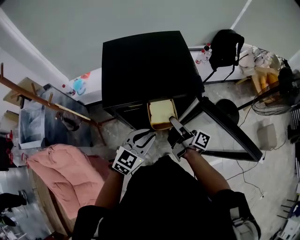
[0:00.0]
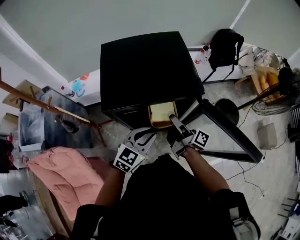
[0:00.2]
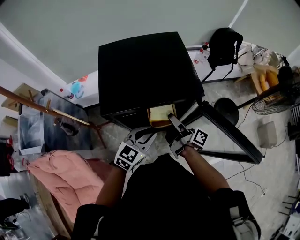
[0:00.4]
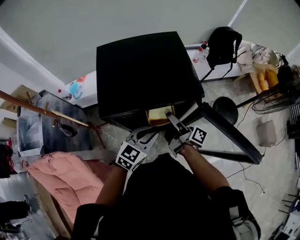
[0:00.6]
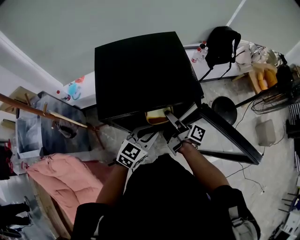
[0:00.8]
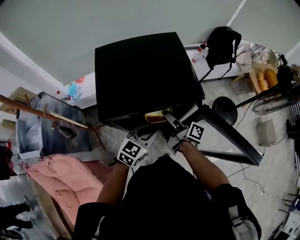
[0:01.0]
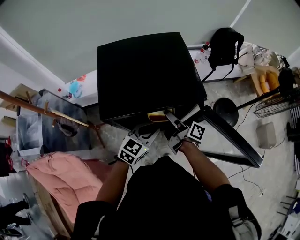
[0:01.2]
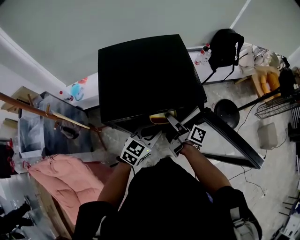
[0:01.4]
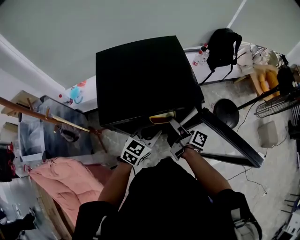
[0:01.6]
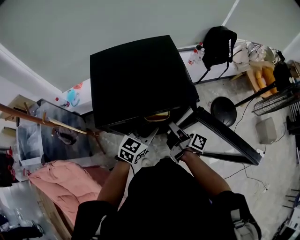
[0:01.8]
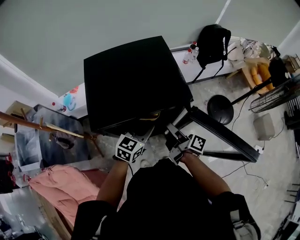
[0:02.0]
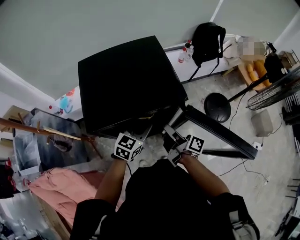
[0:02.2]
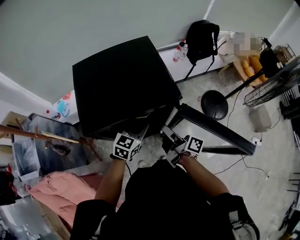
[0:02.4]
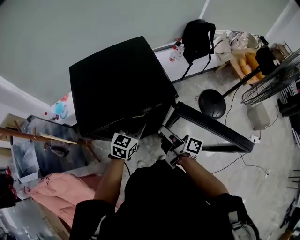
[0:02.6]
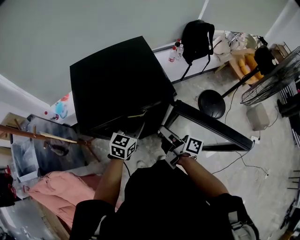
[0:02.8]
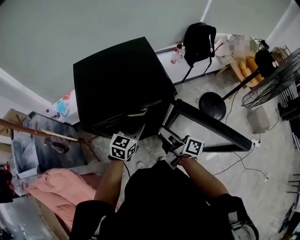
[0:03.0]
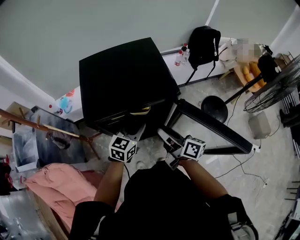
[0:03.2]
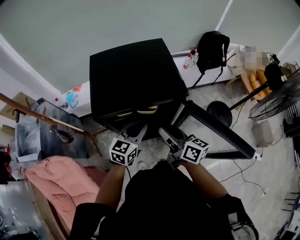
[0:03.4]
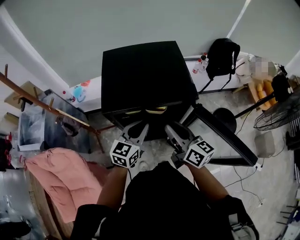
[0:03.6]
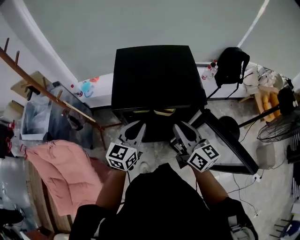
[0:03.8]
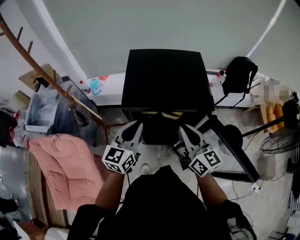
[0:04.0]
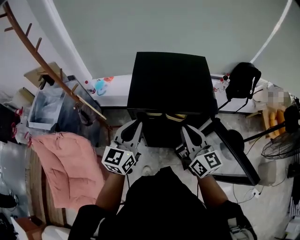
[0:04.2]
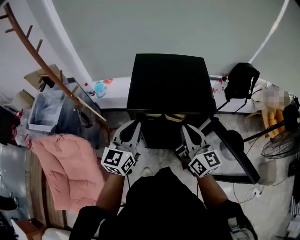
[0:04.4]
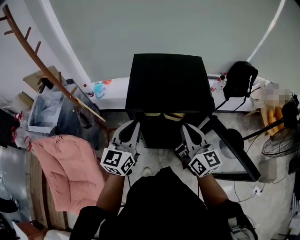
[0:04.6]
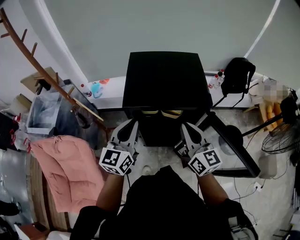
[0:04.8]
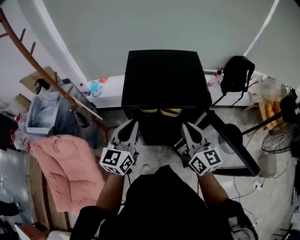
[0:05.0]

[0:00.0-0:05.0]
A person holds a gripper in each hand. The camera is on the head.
0:00.0 to 0:01.6: The left gripper is displaced forward by approximately 10 cm, while the right gripper moves roughly 5 cm.
0:01.6 to 0:03.4: The right gripper moves upward and backward, about 10 cm, turns by about 40 degrees, and closes up.
0:03.4 to 0:05.0: The left gripper travels to the left and upward by some 15 cm, and swivels roughly 30 degrees. Meanwhile the right gripper goes roughly 5 cm upward, turns by some 30 degrees, and closes its fingers.

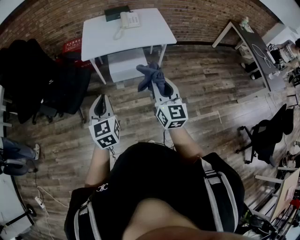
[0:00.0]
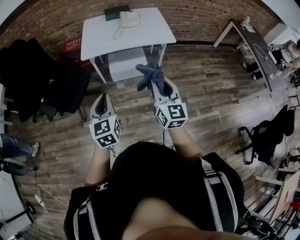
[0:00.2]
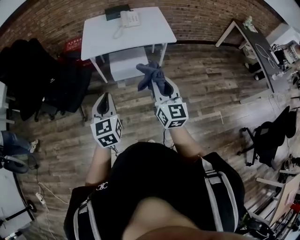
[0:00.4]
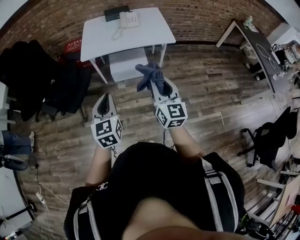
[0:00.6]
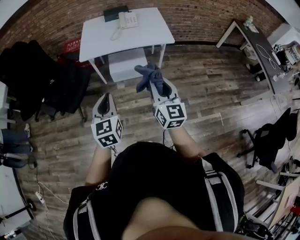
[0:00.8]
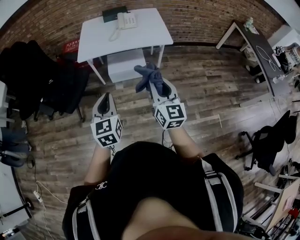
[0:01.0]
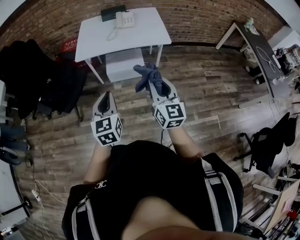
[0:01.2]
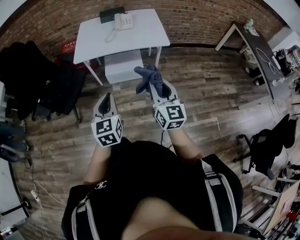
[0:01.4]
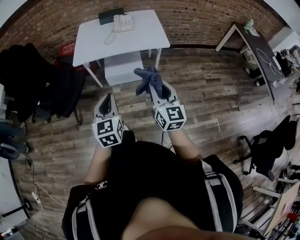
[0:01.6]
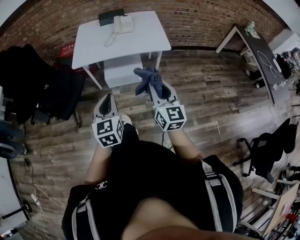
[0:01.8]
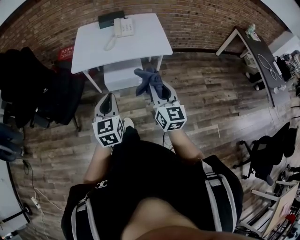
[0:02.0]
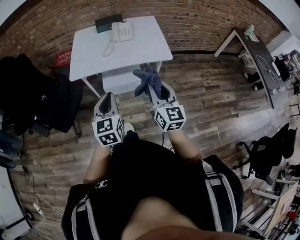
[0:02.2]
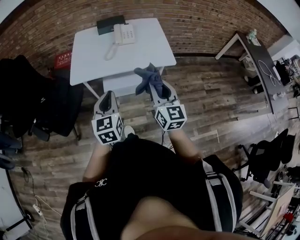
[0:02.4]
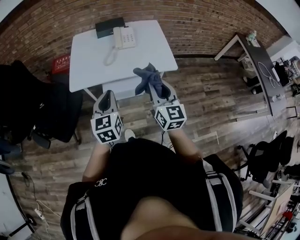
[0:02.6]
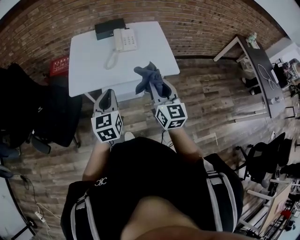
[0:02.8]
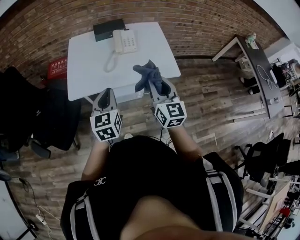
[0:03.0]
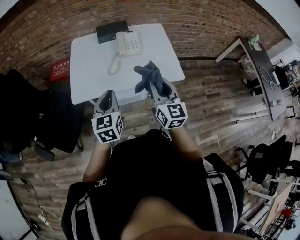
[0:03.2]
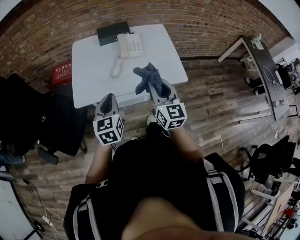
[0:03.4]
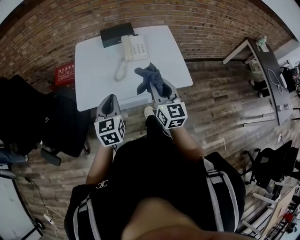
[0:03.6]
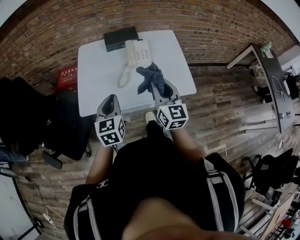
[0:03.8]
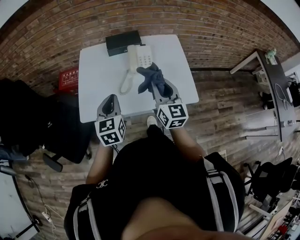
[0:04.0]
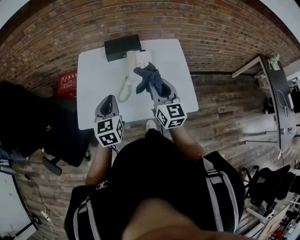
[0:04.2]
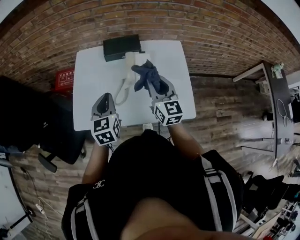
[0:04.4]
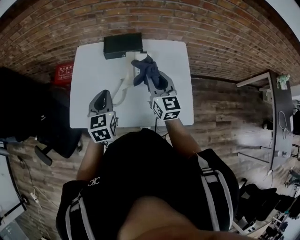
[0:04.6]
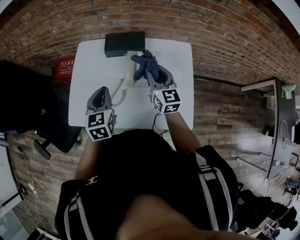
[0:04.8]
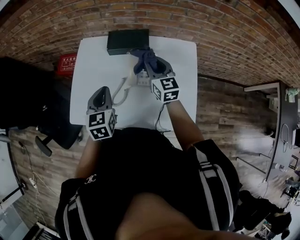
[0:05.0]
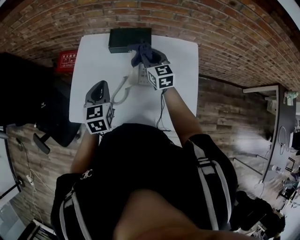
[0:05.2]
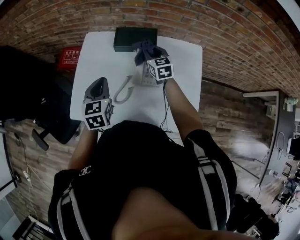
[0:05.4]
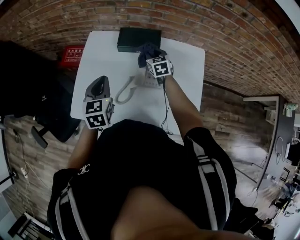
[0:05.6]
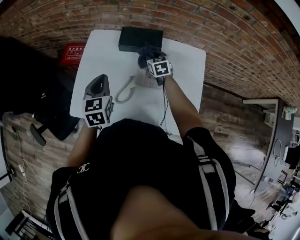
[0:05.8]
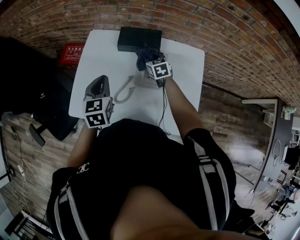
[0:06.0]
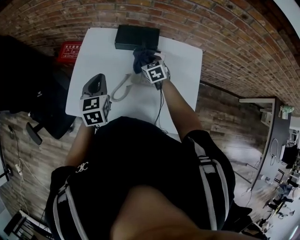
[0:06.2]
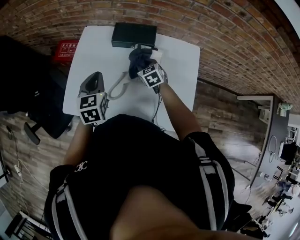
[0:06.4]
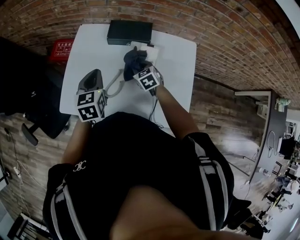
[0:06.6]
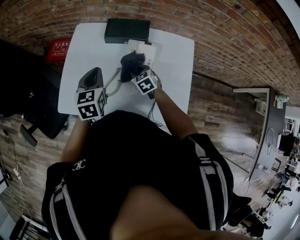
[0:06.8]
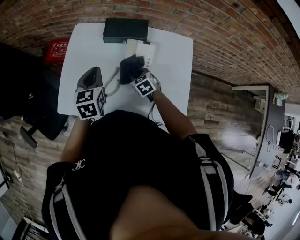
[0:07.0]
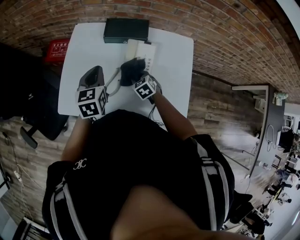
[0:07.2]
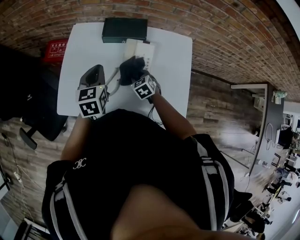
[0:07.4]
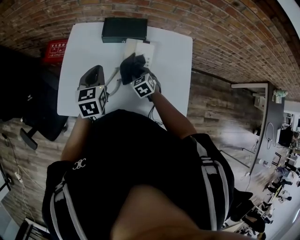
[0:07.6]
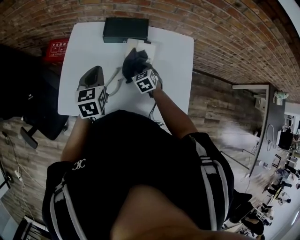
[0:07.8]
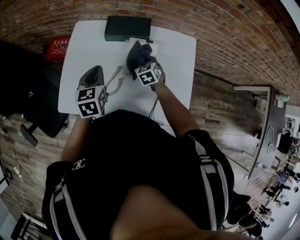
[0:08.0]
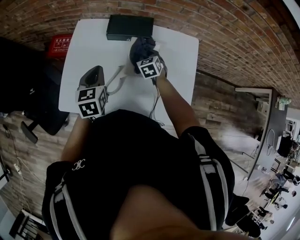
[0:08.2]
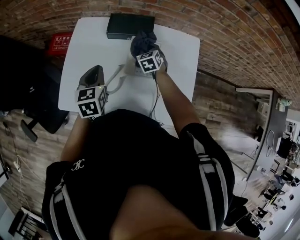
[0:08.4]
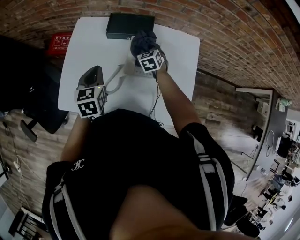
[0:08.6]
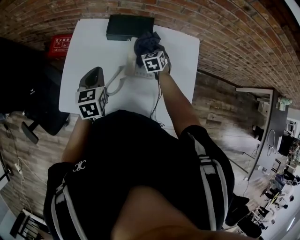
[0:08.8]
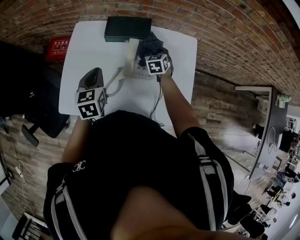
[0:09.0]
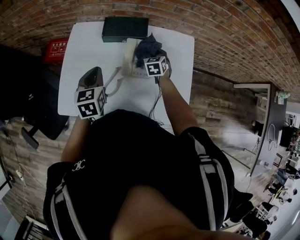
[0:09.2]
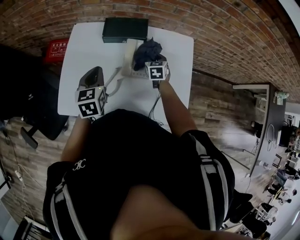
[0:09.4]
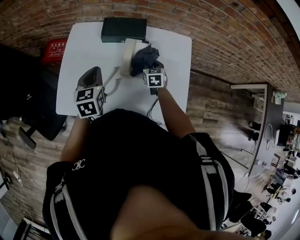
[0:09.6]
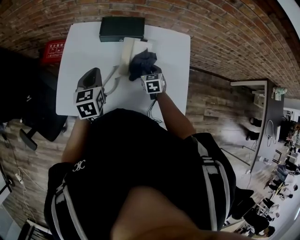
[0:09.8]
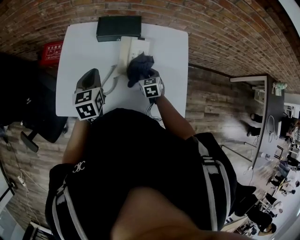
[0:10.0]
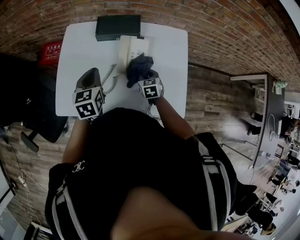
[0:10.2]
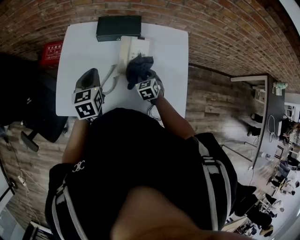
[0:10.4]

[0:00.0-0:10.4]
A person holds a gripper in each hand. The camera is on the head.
0:00.0 to 0:01.4: Both grippers travel together to the right, some 15 cm.
0:01.4 to 0:03.0: Both grippers travel together forward, approximately 35 cm.
0:03.0 to 0:04.4: The two grippers go roughly 30 cm forward.
0:04.4 to 0:06.0: The right gripper is displaced forward and downward by roughly 30 cm, and points its fingers approximately 30 degrees further downward. Meanwhile the left gripper heads forward, covering some 10 cm.
0:06.0 to 0:07.4: The right gripper moves backward and downward, some 15 cm.
0:07.4 to 0:09.0: The right gripper is displaced forward and to the right by approximately 15 cm, and changes its angle by some 20 degrees.
0:09.0 to 0:10.4: The right gripper goes some 15 cm backward.

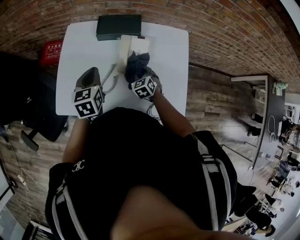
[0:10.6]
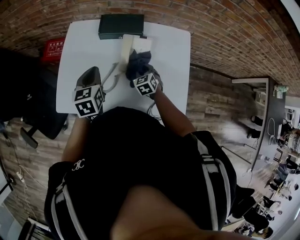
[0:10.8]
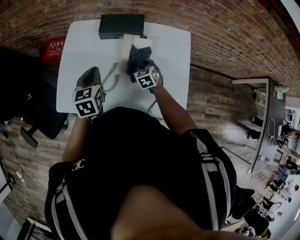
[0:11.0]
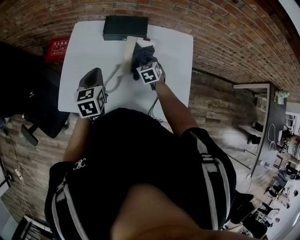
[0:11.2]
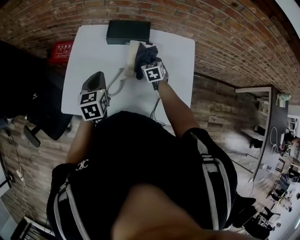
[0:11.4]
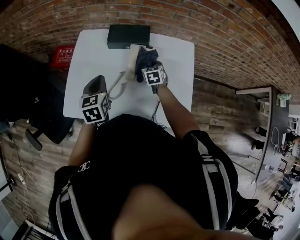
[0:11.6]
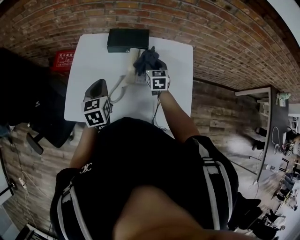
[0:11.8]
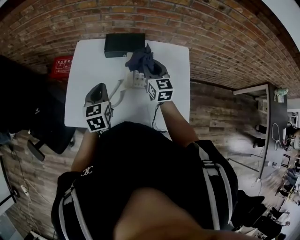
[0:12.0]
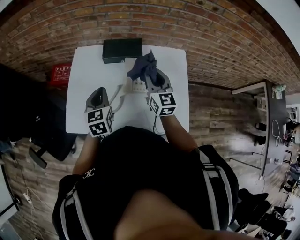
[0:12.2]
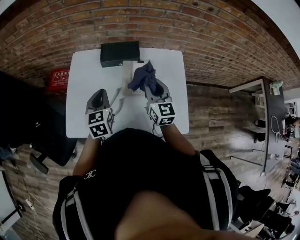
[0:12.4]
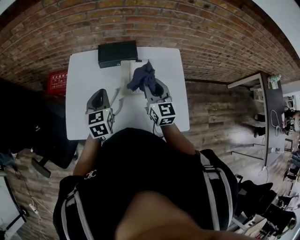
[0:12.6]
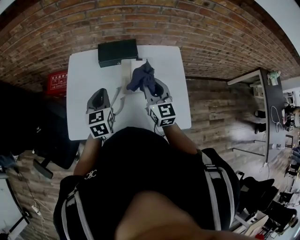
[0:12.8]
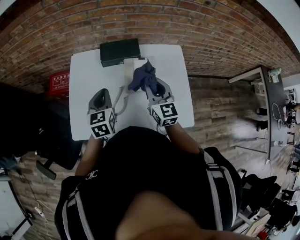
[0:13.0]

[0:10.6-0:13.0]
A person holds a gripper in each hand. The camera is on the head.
0:10.6 to 0:11.8: The right gripper heads upward and forward, covering roughly 15 cm, and turns by some 30 degrees.
0:11.8 to 0:13.0: The right gripper is displaced upward and backward by approximately 20 cm.

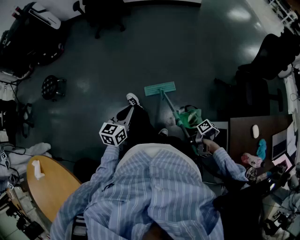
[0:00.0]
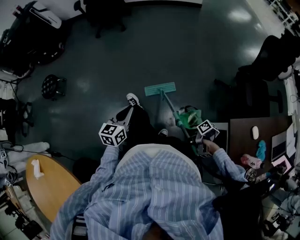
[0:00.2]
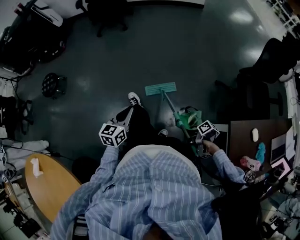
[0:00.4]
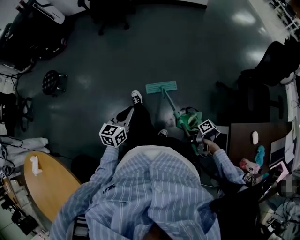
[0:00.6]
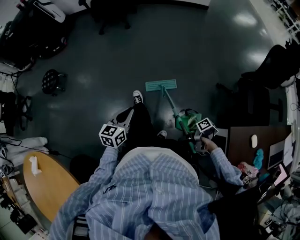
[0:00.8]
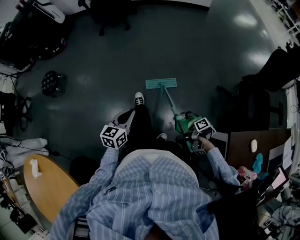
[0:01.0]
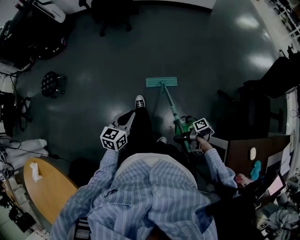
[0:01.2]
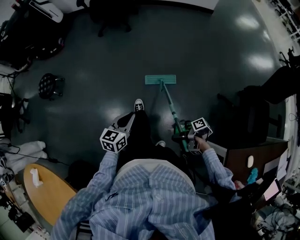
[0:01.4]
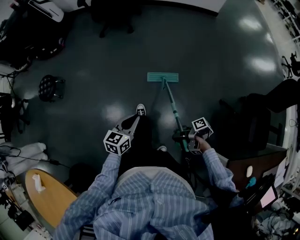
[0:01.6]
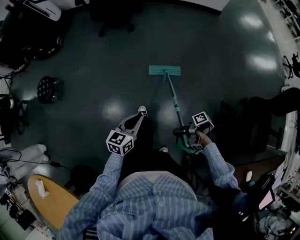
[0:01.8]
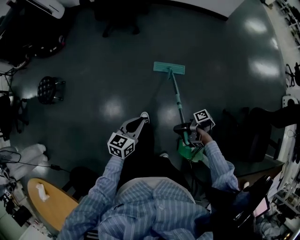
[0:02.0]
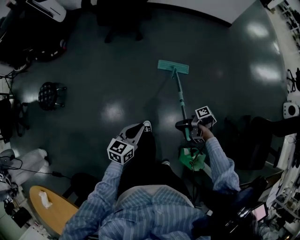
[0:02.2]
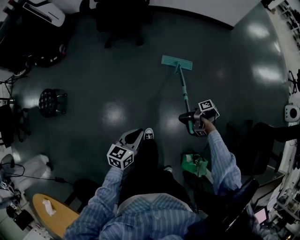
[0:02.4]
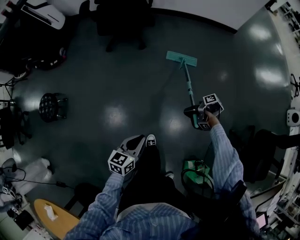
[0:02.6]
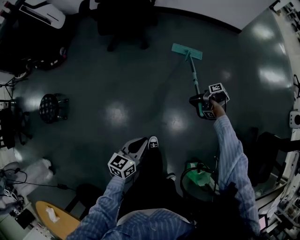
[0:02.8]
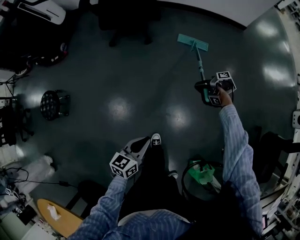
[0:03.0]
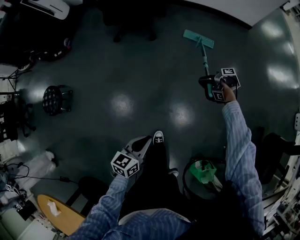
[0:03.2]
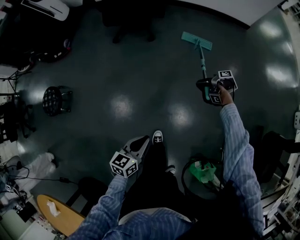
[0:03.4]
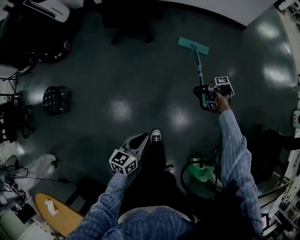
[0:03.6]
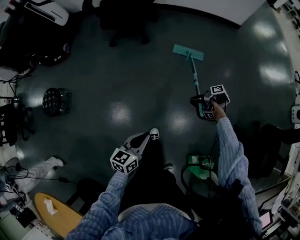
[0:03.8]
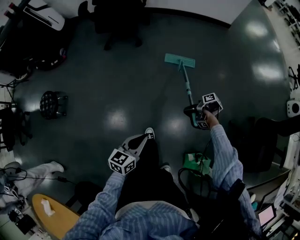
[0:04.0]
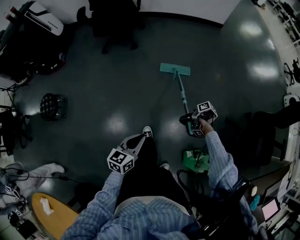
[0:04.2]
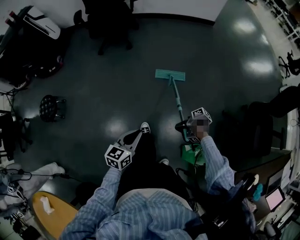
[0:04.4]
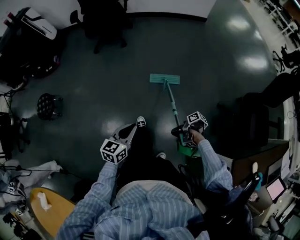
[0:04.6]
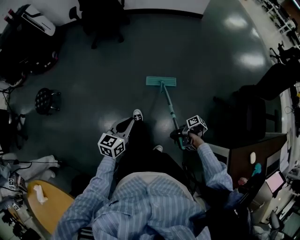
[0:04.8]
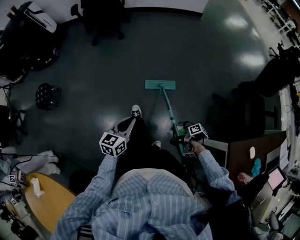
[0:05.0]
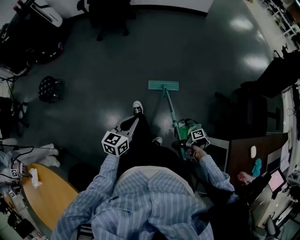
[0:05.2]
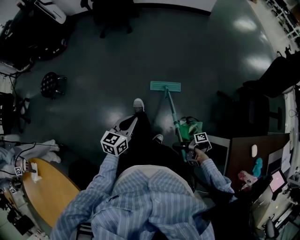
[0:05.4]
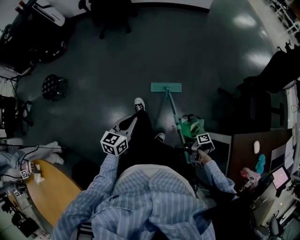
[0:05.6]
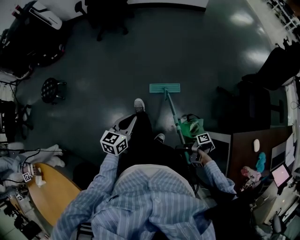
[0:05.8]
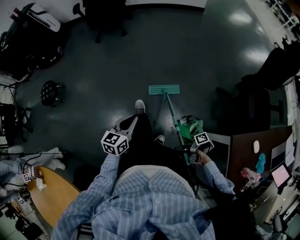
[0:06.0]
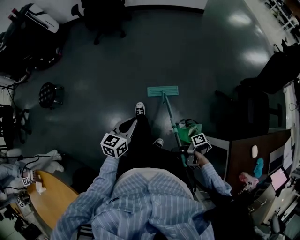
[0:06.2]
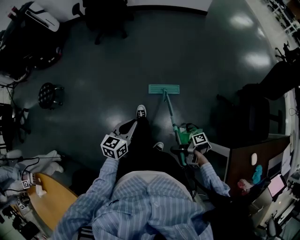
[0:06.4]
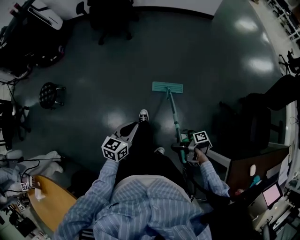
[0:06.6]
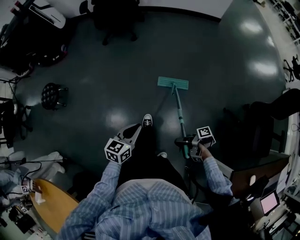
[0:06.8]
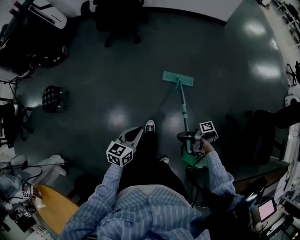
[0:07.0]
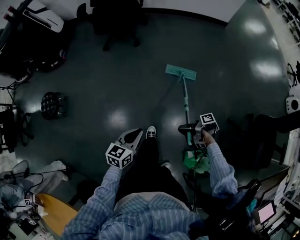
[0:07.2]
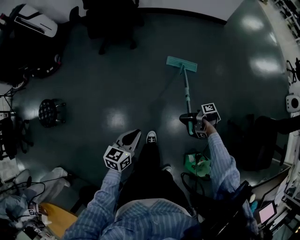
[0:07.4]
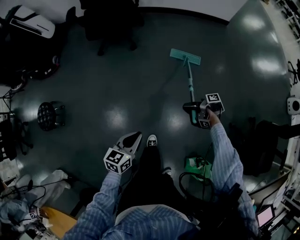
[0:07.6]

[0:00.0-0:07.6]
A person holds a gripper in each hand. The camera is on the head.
0:00.0 to 0:01.6: The left gripper changes place by some 15 cm.
0:01.6 to 0:03.0: The left gripper shifts by about 30 cm.
0:03.0 to 0:04.6: The left gripper ends up about 25 cm from where it was.
0:04.6 to 0:06.0: The left gripper shifts by about 15 cm.
0:06.0 to 0:07.6: The left gripper ends up about 35 cm from where it was.
